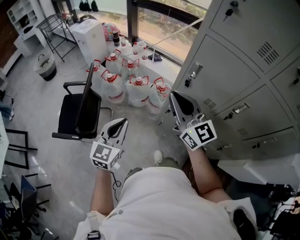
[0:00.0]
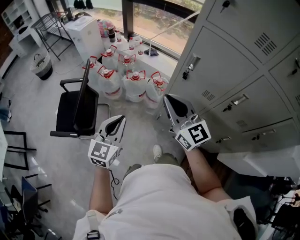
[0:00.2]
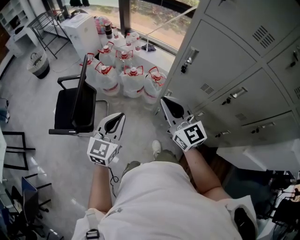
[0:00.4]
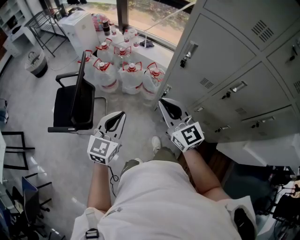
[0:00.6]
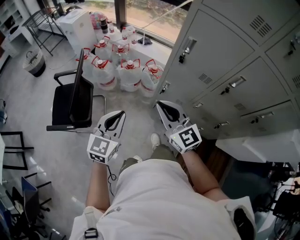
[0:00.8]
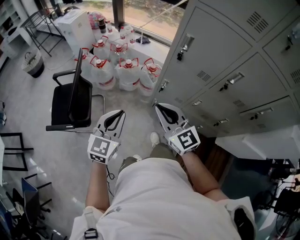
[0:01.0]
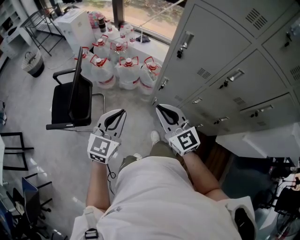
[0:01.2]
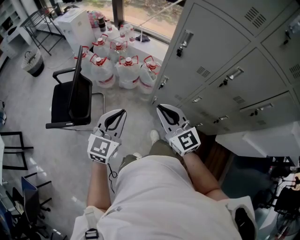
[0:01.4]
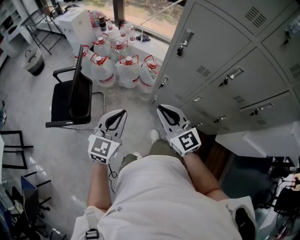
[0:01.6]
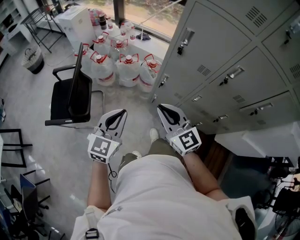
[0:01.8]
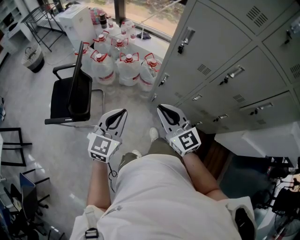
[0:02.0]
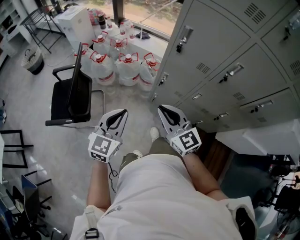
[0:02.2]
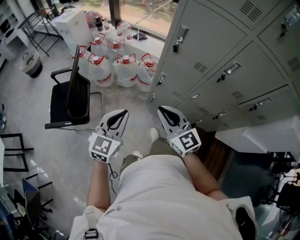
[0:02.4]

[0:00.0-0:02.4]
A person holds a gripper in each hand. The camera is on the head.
0:00.0 to 0:01.2: The left gripper is displaced backward by approximately 10 cm. The right gripper heads backward and downward, covering some 20 cm.
0:01.2 to 0:02.4: The grippers stay close to where they were, moving slightly.

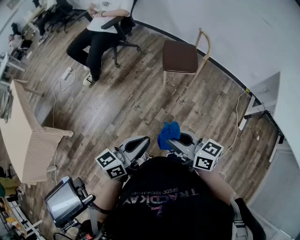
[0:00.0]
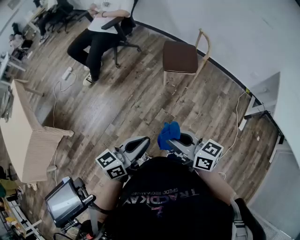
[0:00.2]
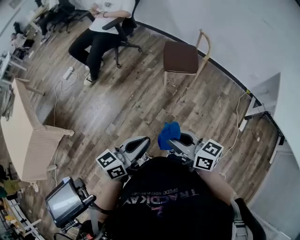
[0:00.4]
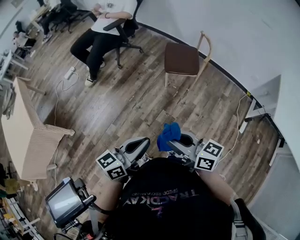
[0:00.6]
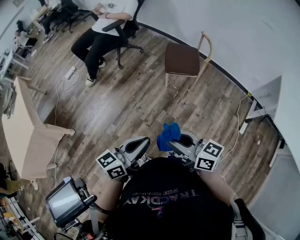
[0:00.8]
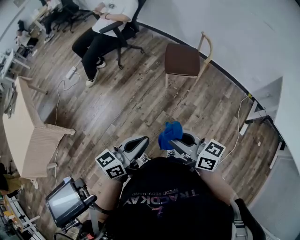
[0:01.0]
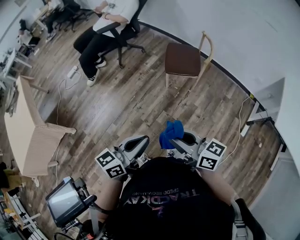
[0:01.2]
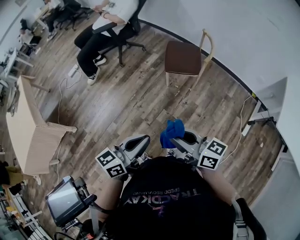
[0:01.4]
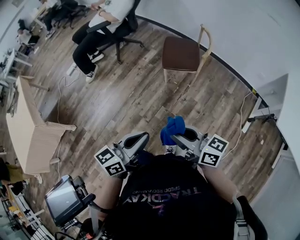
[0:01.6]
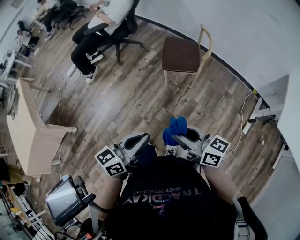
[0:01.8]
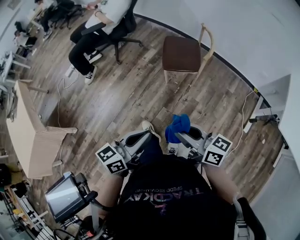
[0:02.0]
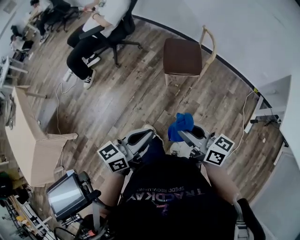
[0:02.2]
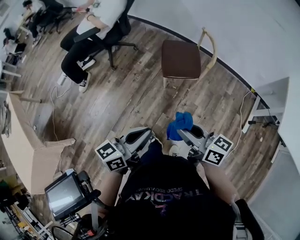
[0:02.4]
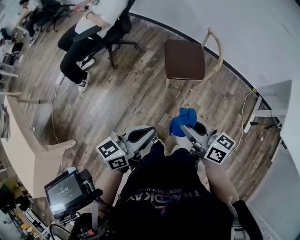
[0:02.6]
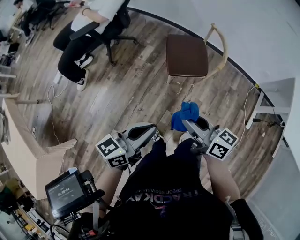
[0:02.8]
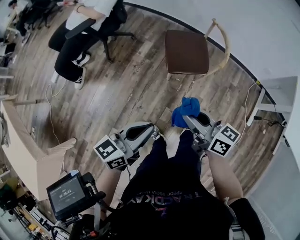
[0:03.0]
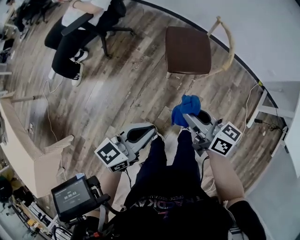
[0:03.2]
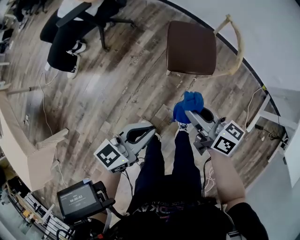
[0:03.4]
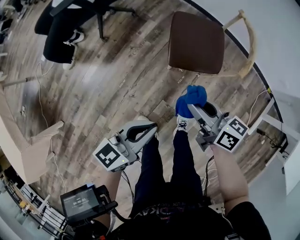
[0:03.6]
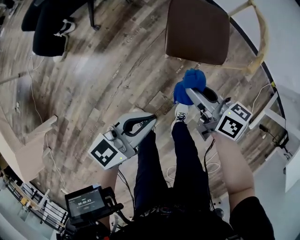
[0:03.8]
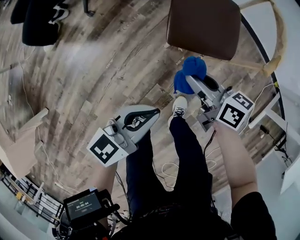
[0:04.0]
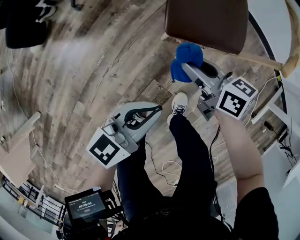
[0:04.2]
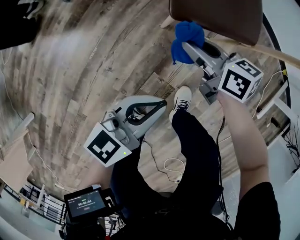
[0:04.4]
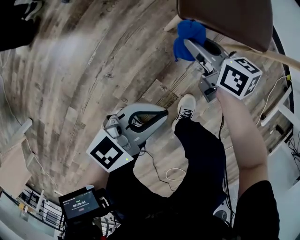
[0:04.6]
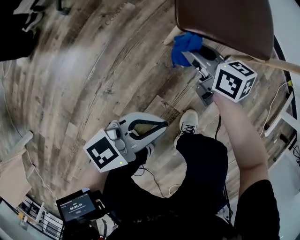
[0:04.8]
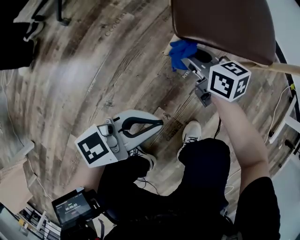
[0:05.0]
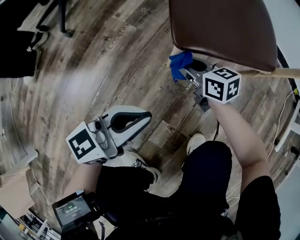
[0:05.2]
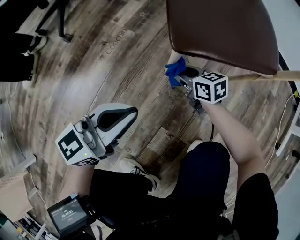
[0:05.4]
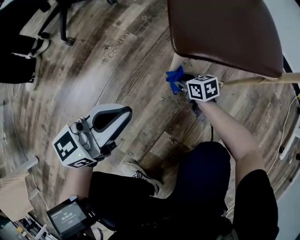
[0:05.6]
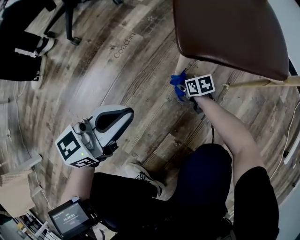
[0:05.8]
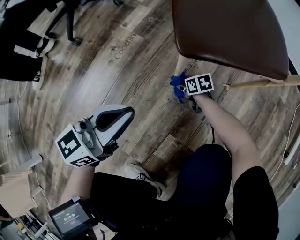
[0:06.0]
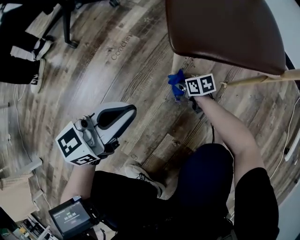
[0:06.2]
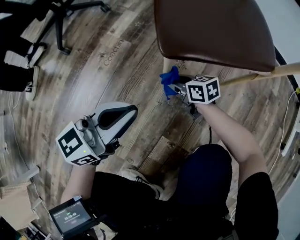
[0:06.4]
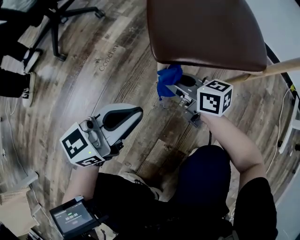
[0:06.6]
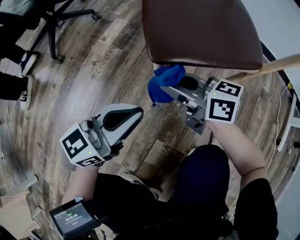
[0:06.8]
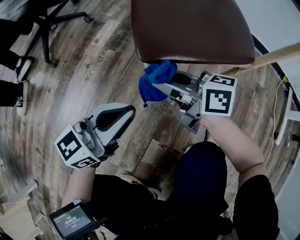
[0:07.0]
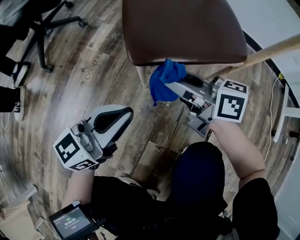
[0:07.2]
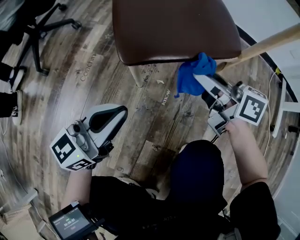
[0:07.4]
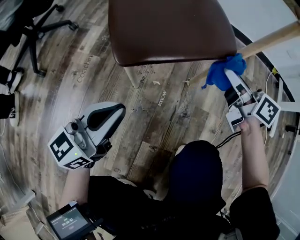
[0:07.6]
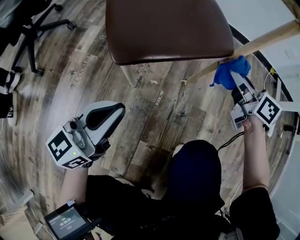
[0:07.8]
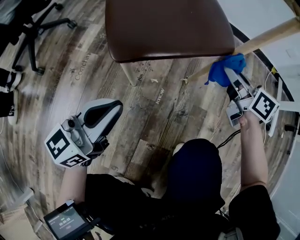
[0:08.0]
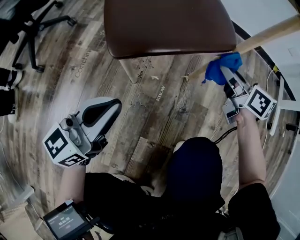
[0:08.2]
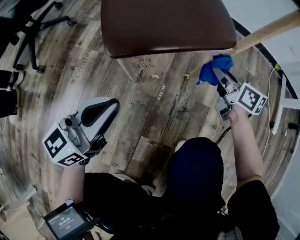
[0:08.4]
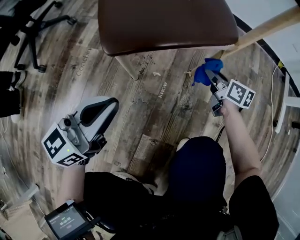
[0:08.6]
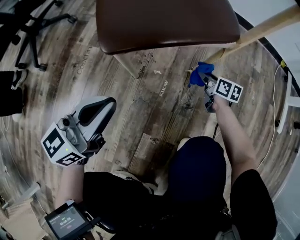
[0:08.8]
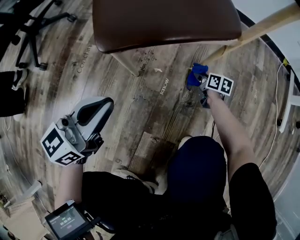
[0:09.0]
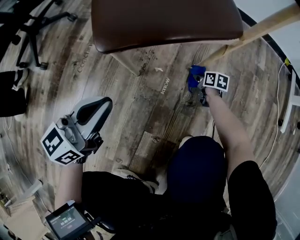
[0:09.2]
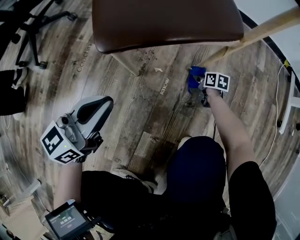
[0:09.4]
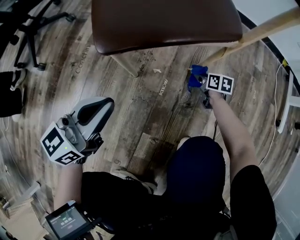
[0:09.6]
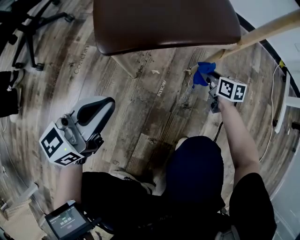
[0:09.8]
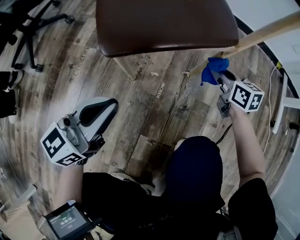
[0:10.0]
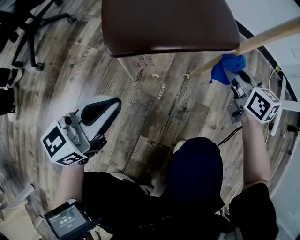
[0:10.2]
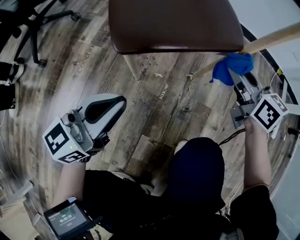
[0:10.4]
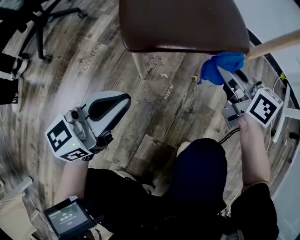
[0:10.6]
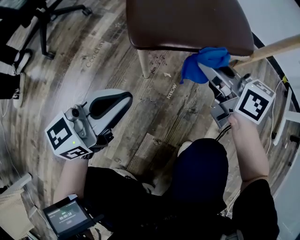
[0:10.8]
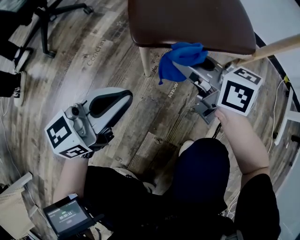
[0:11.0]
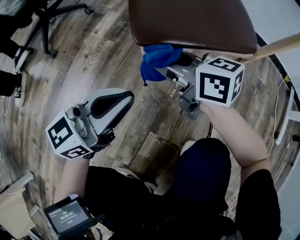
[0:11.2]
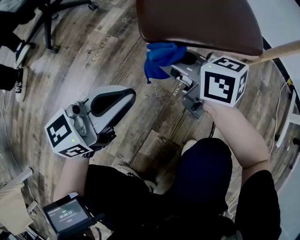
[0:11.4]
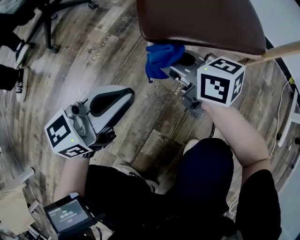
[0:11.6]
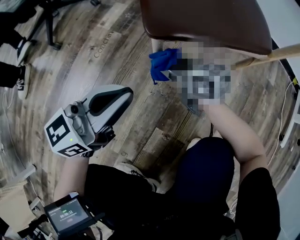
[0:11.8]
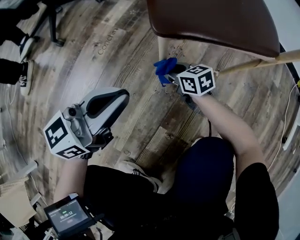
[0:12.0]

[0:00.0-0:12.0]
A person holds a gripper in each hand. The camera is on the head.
0:00.0 to 0:01.6: Both grippers travel together to the right, roughly 10 cm.
0:01.6 to 0:03.0: The grippers both shift forward by approximately 25 cm.
0:03.0 to 0:04.4: Both grippers move downward, some 50 cm. The right gripper changes its angle by some 20 degrees.
0:04.4 to 0:06.0: The left gripper heads downward, to the left and forward, covering roughly 20 cm. The right gripper is displaced downward by some 40 cm, and rotates some 20 degrees.
0:06.0 to 0:07.6: The right gripper goes some 40 cm upward, and points its fingers about 40 degrees further upward. Meanwhile the left gripper changes place by approximately 10 cm.
0:07.6 to 0:09.0: The right gripper heads downward, covering approximately 35 cm, and tips its fingers downward by roughly 30 degrees.
0:09.0 to 0:10.4: The right gripper moves upward, about 35 cm, and turns by about 40 degrees.
0:10.4 to 0:12.0: The right gripper heads downward and to the left, covering about 35 cm, and rotates roughly 30 degrees. The left gripper heads to the left, covering some 5 cm.

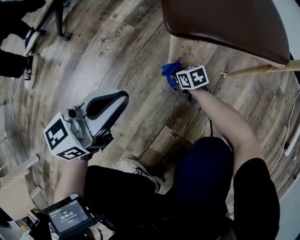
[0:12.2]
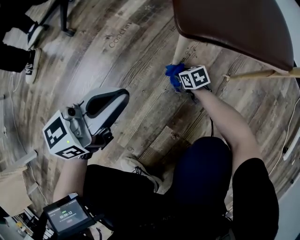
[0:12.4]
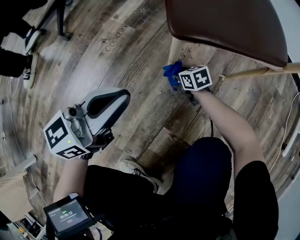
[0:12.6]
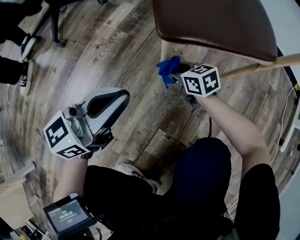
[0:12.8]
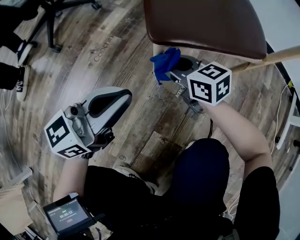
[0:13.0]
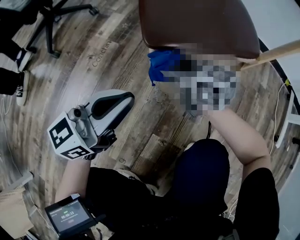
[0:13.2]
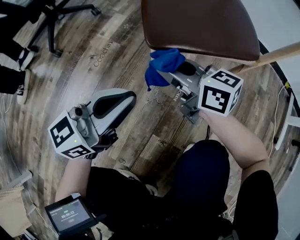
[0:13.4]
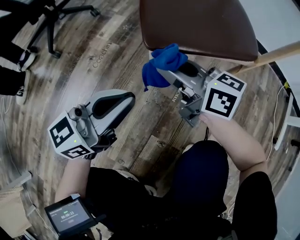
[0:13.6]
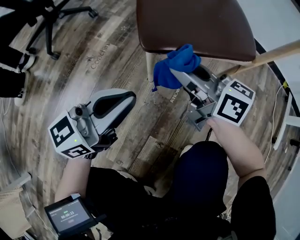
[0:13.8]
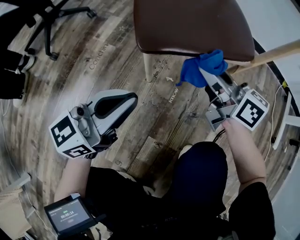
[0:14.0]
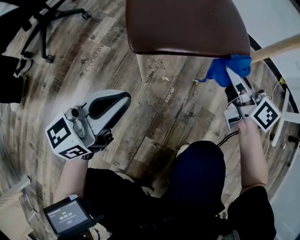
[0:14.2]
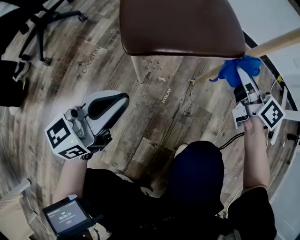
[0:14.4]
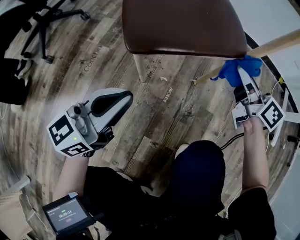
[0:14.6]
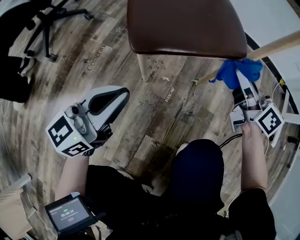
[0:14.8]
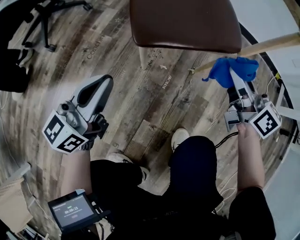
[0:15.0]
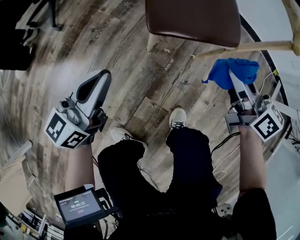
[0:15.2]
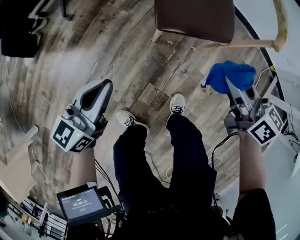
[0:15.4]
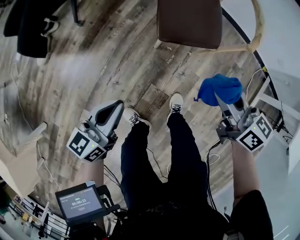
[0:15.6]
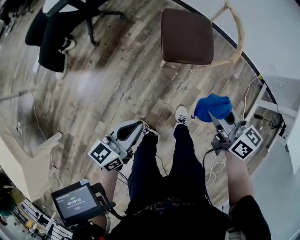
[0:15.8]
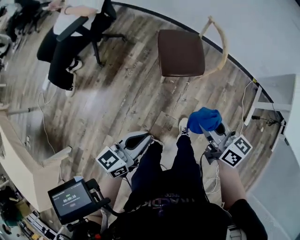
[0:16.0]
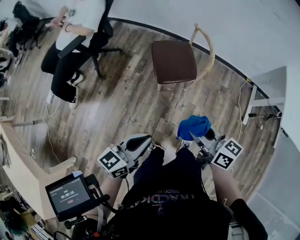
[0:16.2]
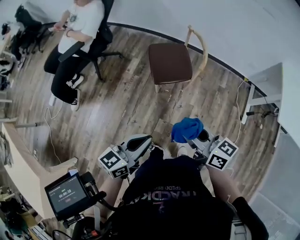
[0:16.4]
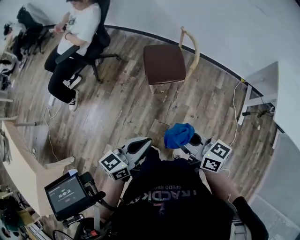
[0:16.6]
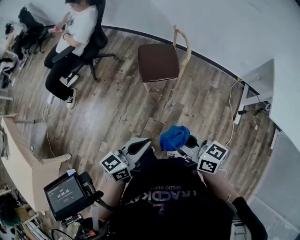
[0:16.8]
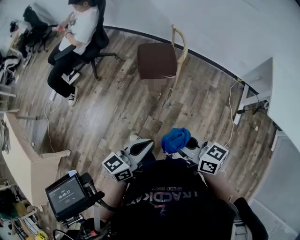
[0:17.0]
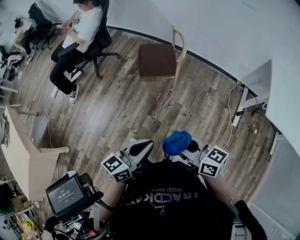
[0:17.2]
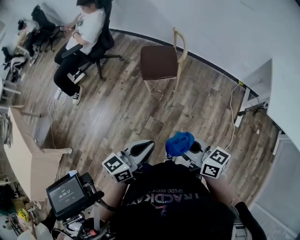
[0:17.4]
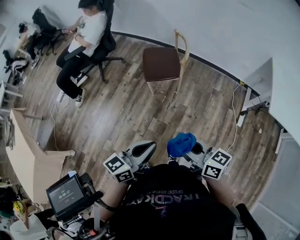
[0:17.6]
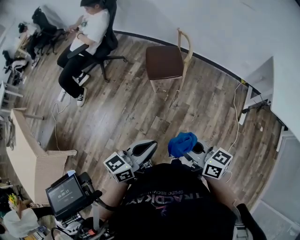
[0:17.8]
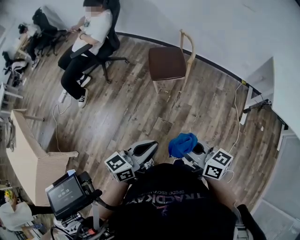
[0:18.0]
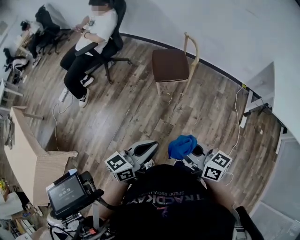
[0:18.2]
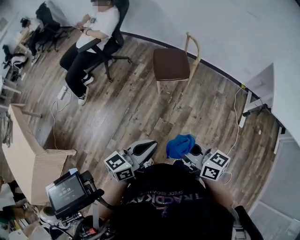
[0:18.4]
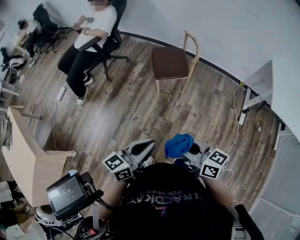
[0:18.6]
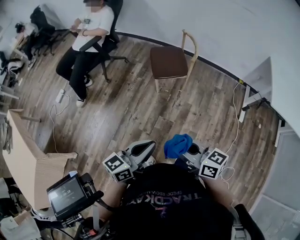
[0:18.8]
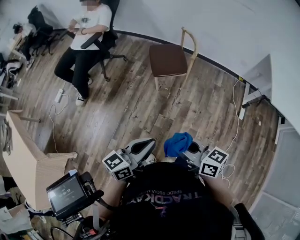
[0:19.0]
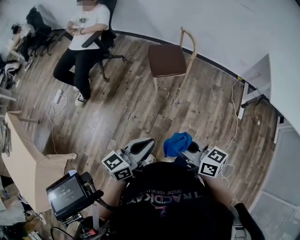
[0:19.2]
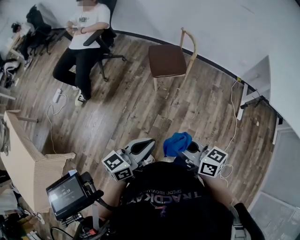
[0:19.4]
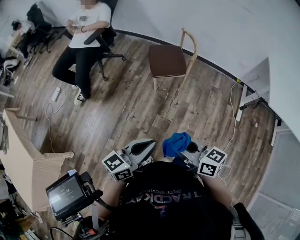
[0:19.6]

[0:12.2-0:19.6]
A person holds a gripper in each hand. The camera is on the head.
0:12.2 to 0:13.6: The left gripper changes place by approximately 5 cm. Meanwhile the right gripper is displaced upward by roughly 35 cm, and tilts its fingers some 40 degrees upward.
0:13.6 to 0:15.2: The left gripper goes approximately 10 cm upward and to the left, and changes its angle by about 20 degrees, while the right gripper moves to the right and upward, approximately 25 cm, and changes its angle by roughly 20 degrees.
0:15.2 to 0:16.6: Both grippers travel together upward and backward, about 60 cm.
0:16.6 to 0:18.2: The two grippers go roughly 15 cm backward.
0:18.2 to 0:19.6: Both grippers travel together to the left, approximately 5 cm.

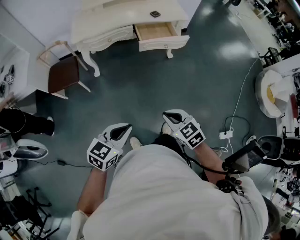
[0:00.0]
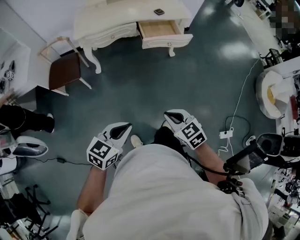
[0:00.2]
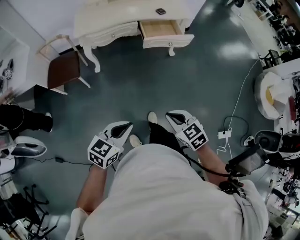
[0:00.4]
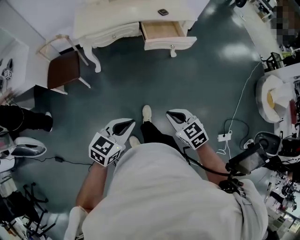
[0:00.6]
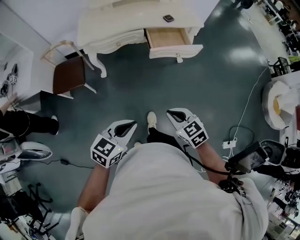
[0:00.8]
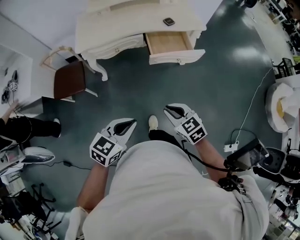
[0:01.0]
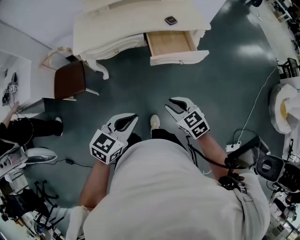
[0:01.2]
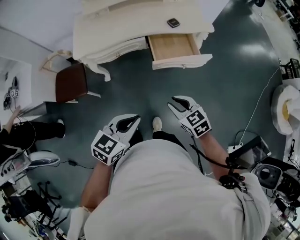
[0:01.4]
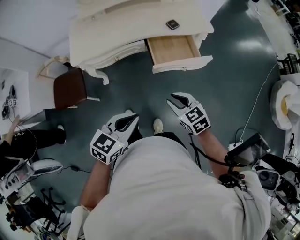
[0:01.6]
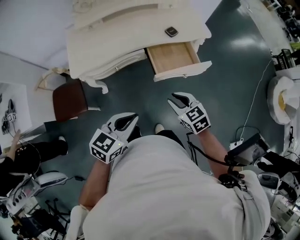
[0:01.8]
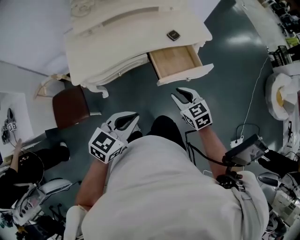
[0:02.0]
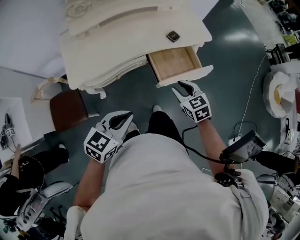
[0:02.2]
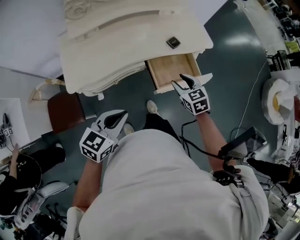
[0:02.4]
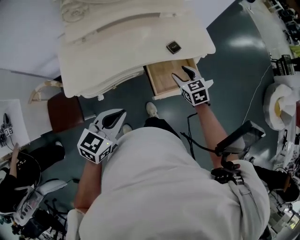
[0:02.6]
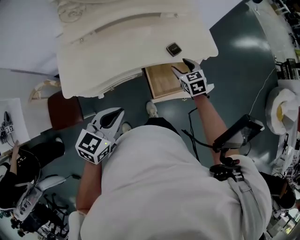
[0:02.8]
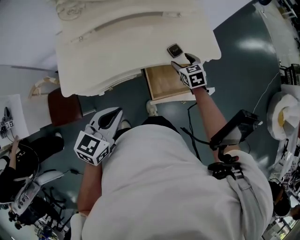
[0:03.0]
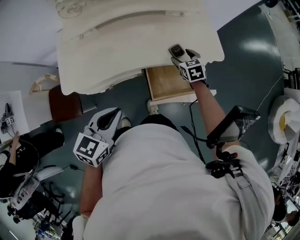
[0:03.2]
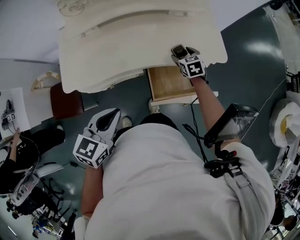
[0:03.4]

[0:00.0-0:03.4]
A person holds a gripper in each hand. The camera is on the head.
0:00.0 to 0:01.6: Both grippers travel together forward, some 35 cm.
0:01.6 to 0:03.4: The left gripper heads forward, covering approximately 30 cm. The right gripper shifts about 50 cm forward, and opens up.
